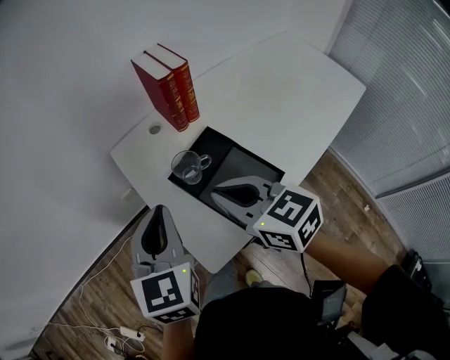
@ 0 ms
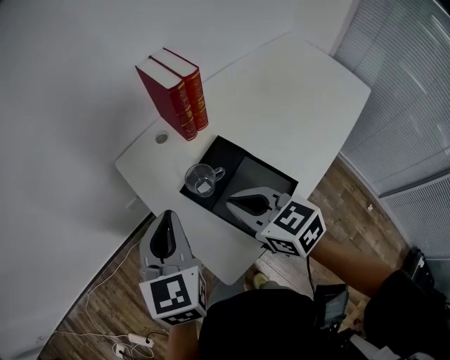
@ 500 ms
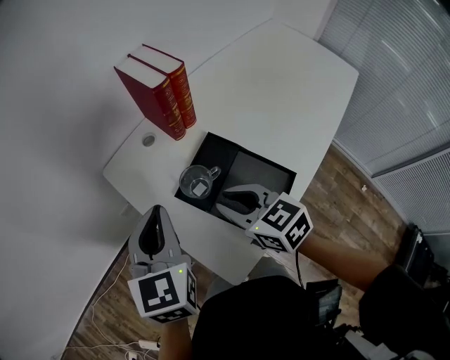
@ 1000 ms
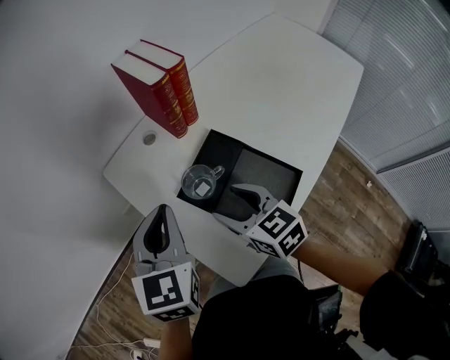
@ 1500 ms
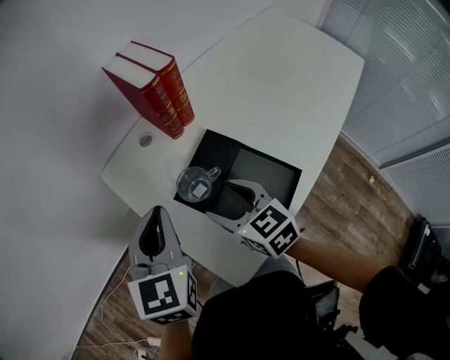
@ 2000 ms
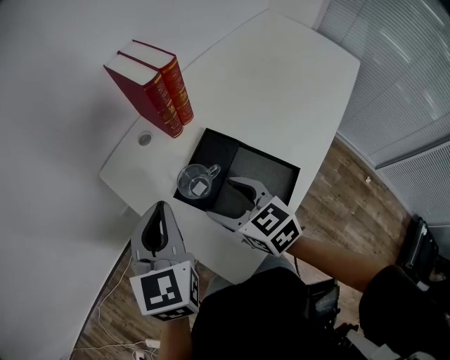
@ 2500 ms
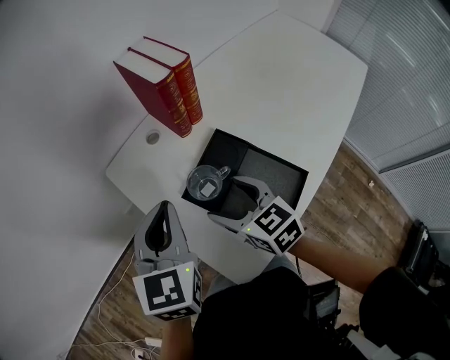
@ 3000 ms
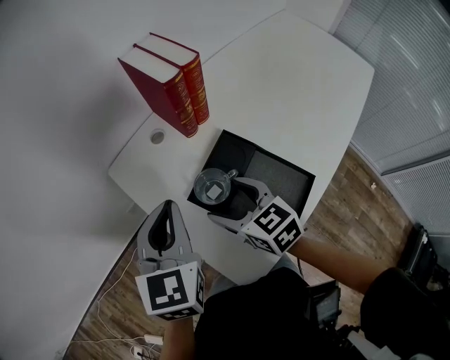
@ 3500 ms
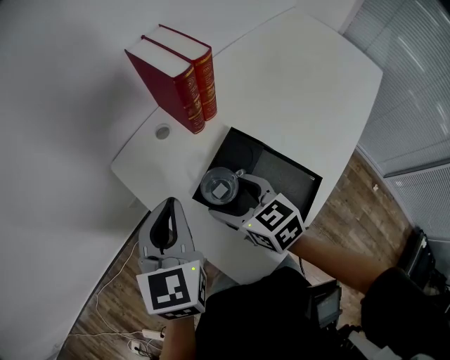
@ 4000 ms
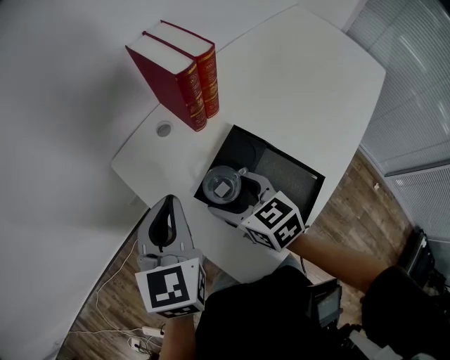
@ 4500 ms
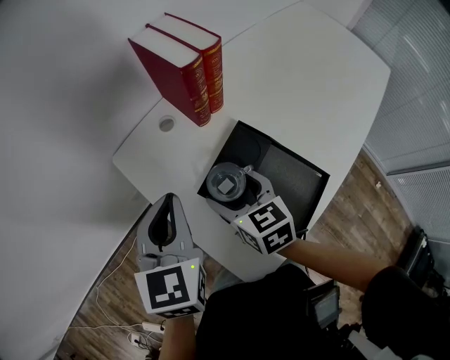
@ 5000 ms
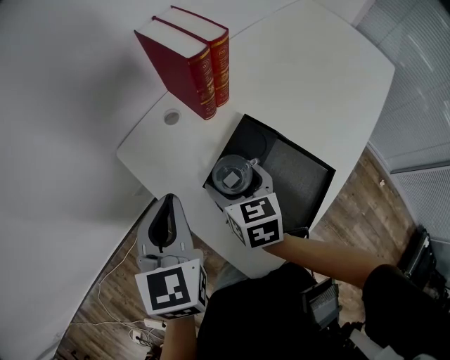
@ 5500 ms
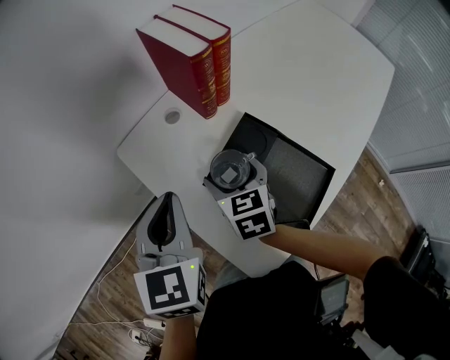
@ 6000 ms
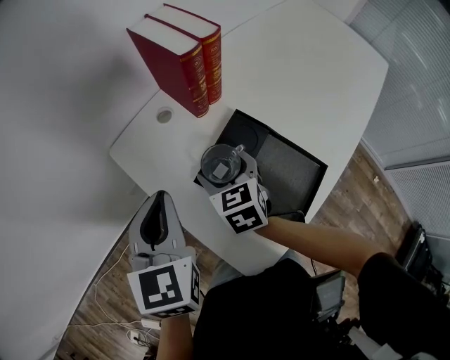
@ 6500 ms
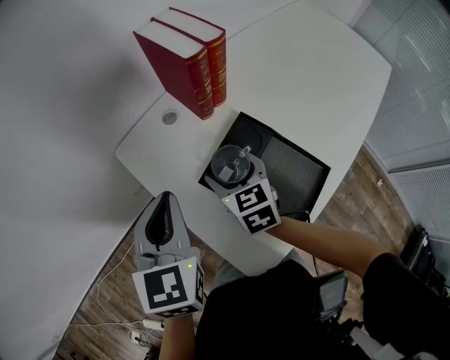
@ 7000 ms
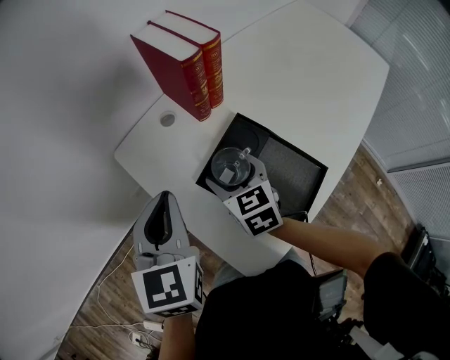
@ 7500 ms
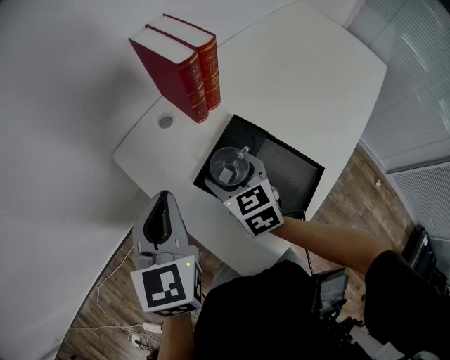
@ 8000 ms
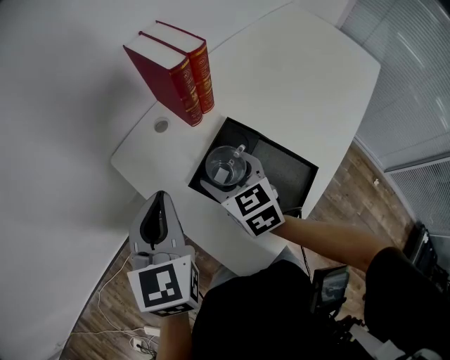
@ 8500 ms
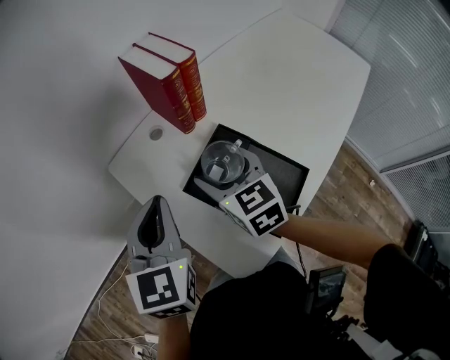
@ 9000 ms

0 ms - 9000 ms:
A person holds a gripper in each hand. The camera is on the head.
0 ms - 2000 ms: The right gripper heads downward and forward, covering some 15 cm, and opens up. Meanwhile the left gripper goes about 10 cm forward.
2000 ms - 4500 ms: The right gripper moves some 5 cm.
4500 ms - 7000 ms: The right gripper moves approximately 5 cm.
7000 ms - 9000 ms: The right gripper shifts roughly 10 cm upward.

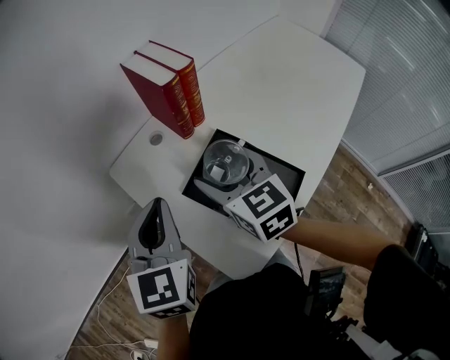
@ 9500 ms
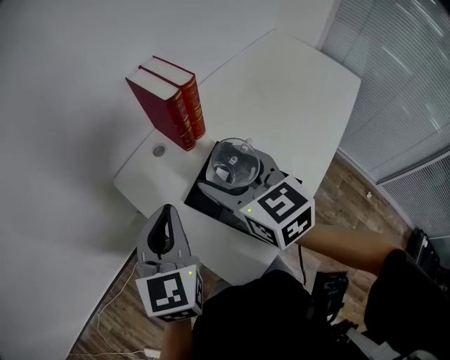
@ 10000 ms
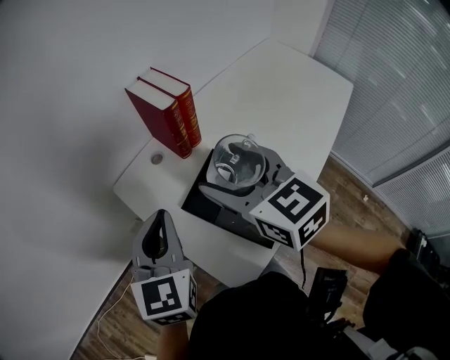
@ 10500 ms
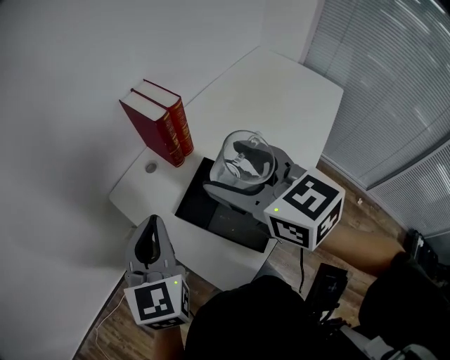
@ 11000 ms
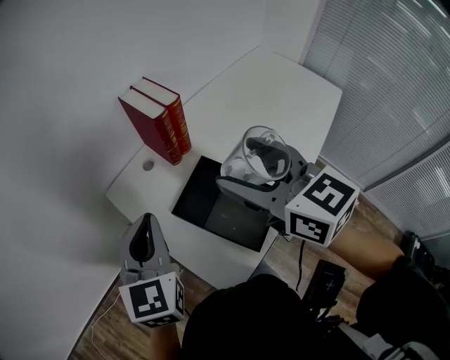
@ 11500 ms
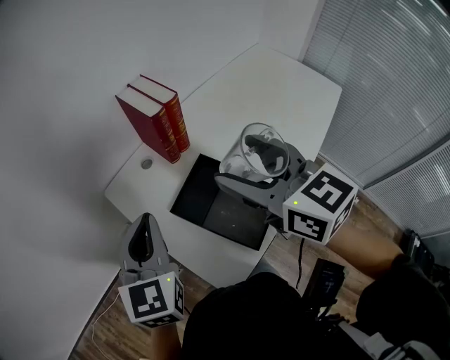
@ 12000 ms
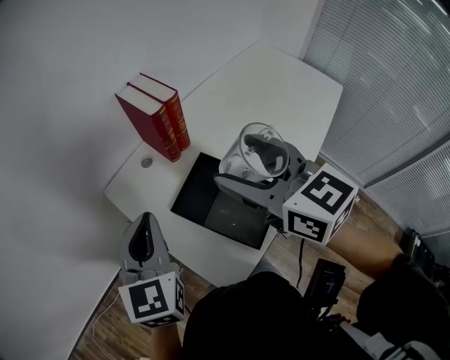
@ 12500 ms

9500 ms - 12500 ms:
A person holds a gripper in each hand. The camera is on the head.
9500 ms - 11000 ms: The right gripper is displaced upward by roughly 15 cm. Meanwhile the left gripper goes about 5 cm upward.
11000 ms - 12500 ms: The grippers make only small movements.

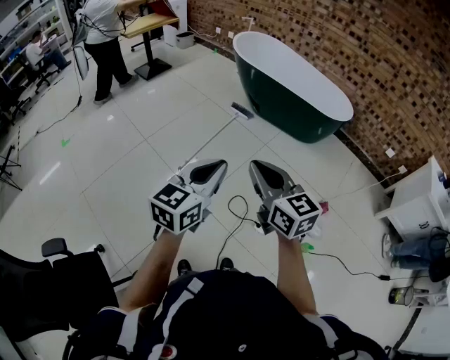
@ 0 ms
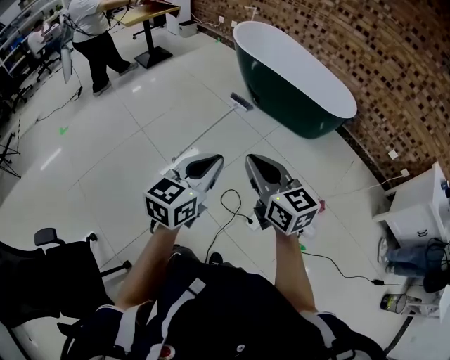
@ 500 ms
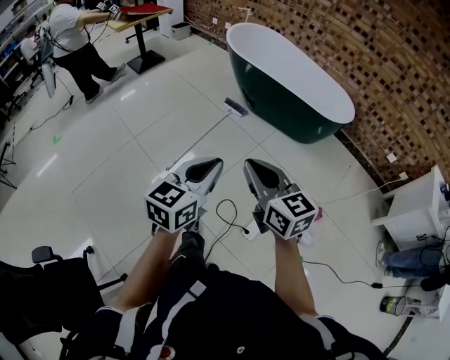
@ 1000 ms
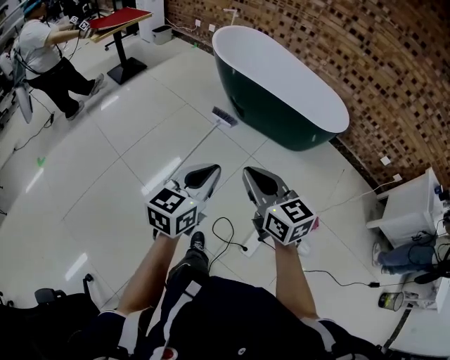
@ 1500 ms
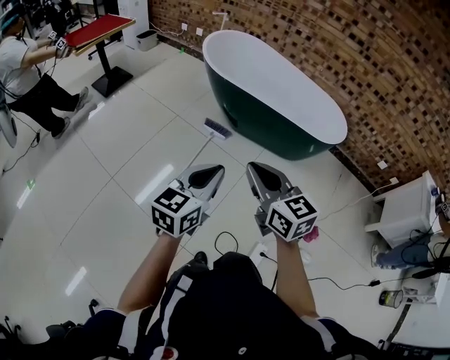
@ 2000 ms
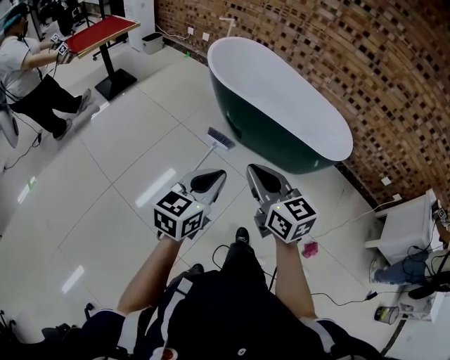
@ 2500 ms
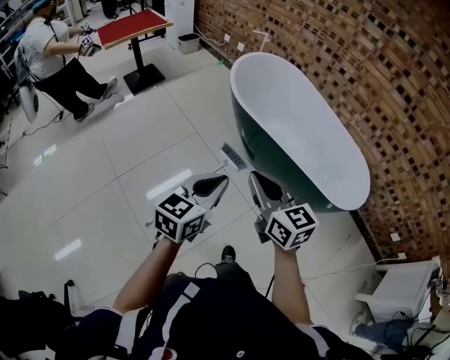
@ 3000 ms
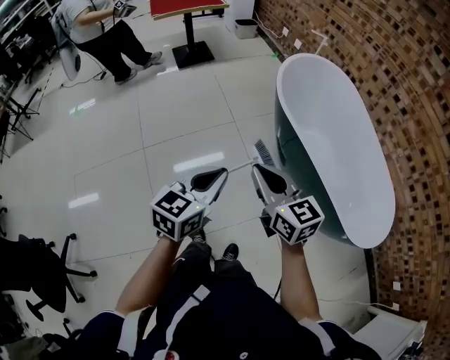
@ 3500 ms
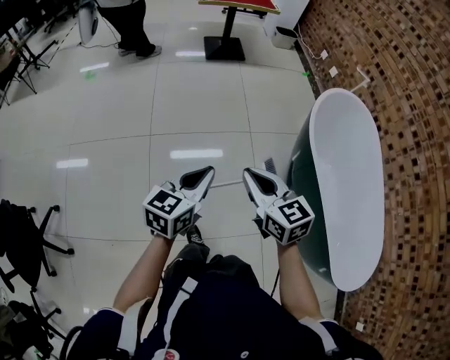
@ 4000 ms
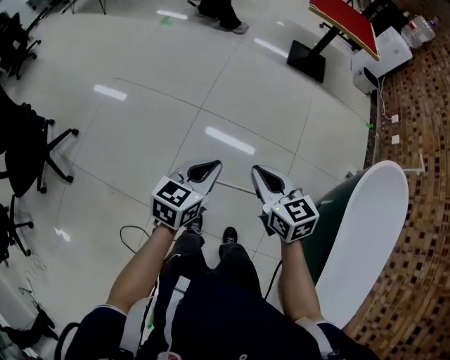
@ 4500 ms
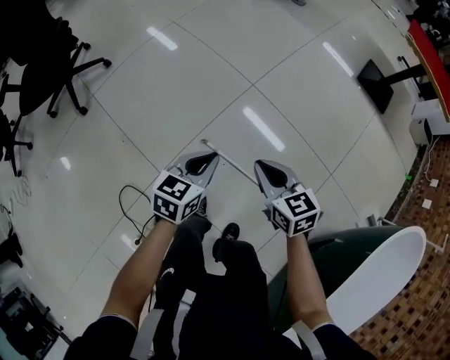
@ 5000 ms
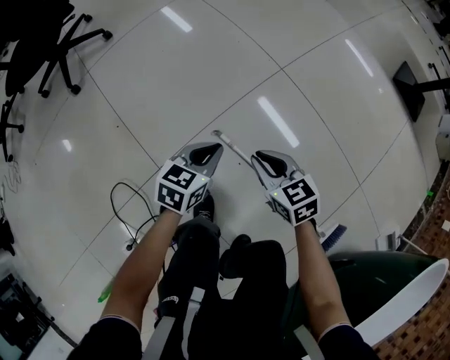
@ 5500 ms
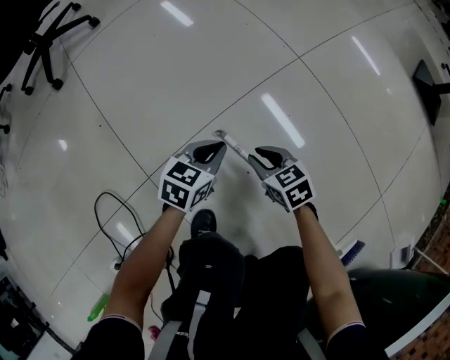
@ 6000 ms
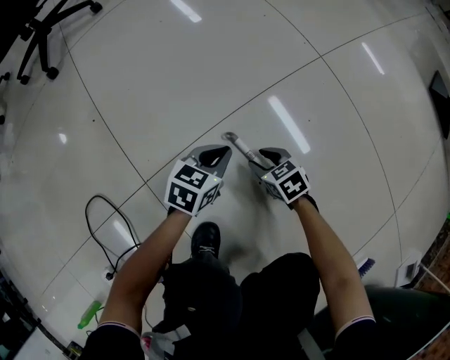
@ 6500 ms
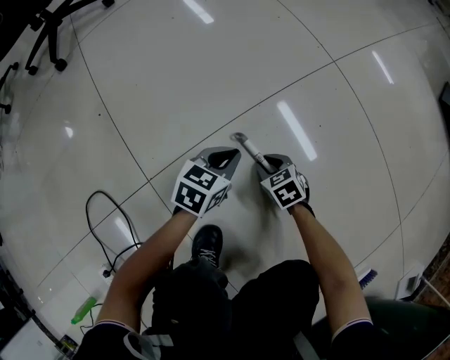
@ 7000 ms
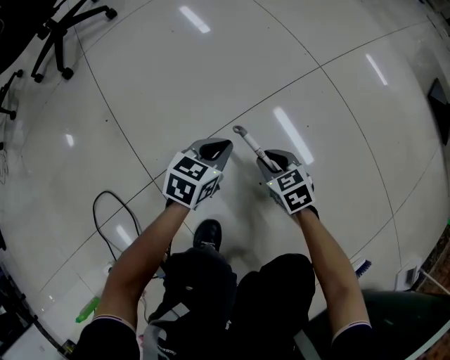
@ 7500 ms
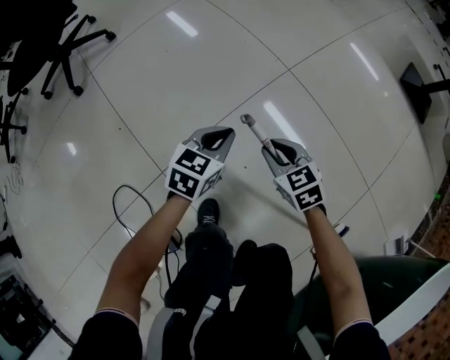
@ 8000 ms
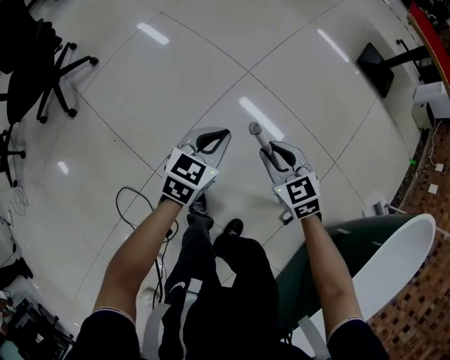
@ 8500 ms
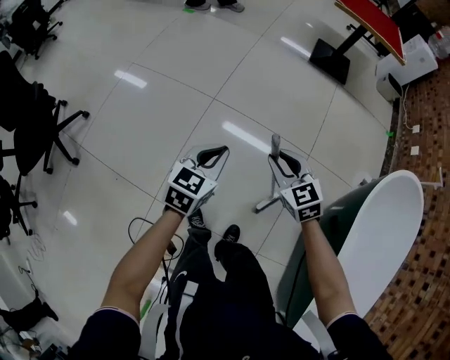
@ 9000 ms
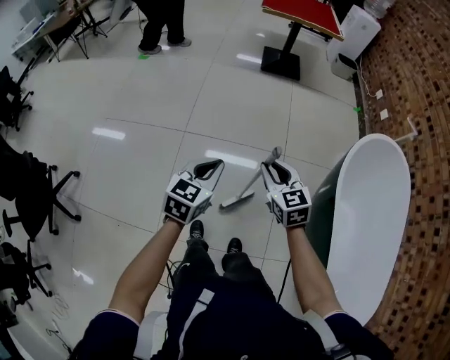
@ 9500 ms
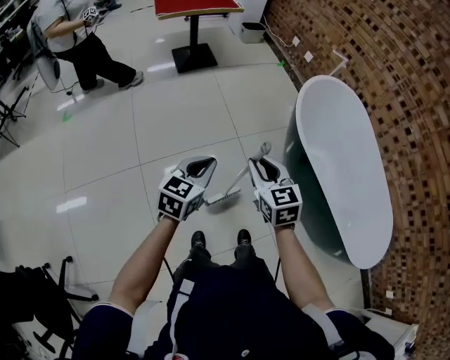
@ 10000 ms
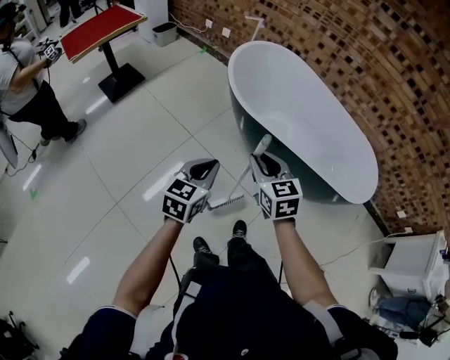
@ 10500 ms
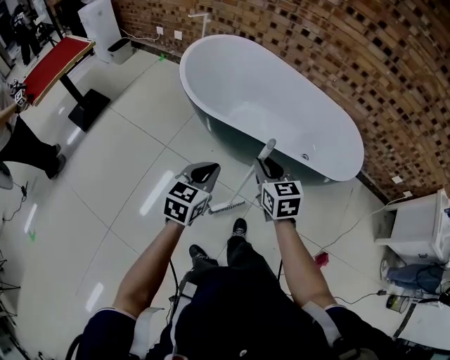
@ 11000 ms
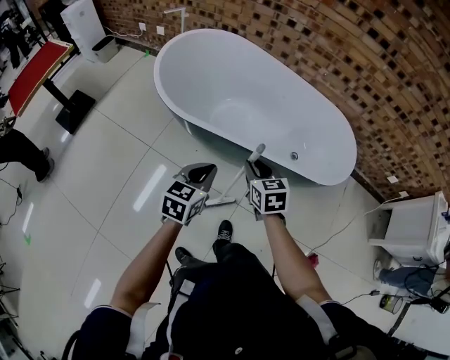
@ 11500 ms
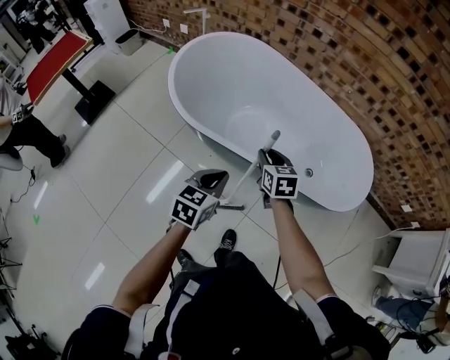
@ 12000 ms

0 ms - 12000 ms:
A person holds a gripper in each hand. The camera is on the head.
0 ms - 2000 ms: Both grippers move forward, roughly 40 cm.
2000 ms - 4000 ms: The right gripper ends up some 35 cm from where it was, and swivels approximately 50 degrees. Meanwhile the left gripper changes place by approximately 30 cm, and swivels some 50 degrees.
4000 ms - 6000 ms: Both grippers travel together downward, about 70 cm. The left gripper rotates about 50 degrees. Meanwhile the right gripper turns by some 70 degrees, and opens up.
6000 ms - 8000 ms: The two grippers go roughly 15 cm upward.
8000 ms - 10000 ms: Both grippers move upward, some 50 cm. The right gripper turns by approximately 90 degrees; the left gripper turns by about 70 degrees.
10000 ms - 12000 ms: The two grippers travel together, approximately 50 cm. The right gripper rotates some 50 degrees; the left gripper changes its angle by roughly 40 degrees.

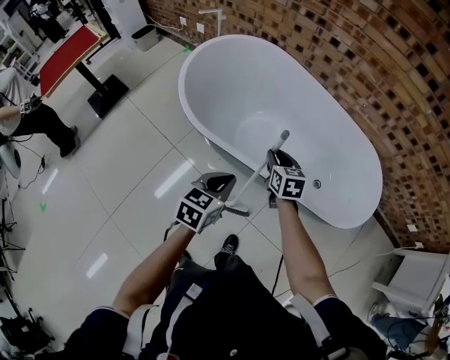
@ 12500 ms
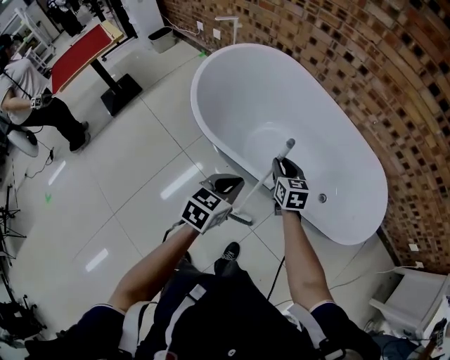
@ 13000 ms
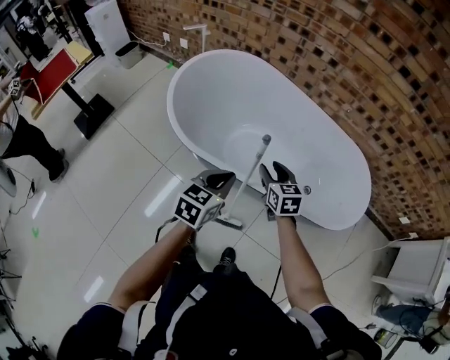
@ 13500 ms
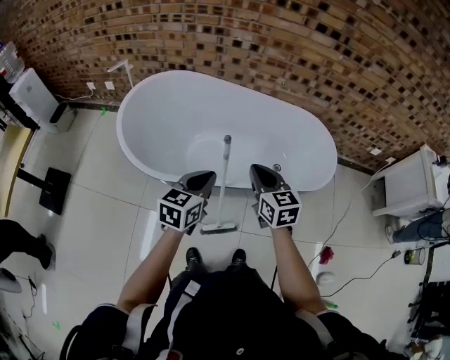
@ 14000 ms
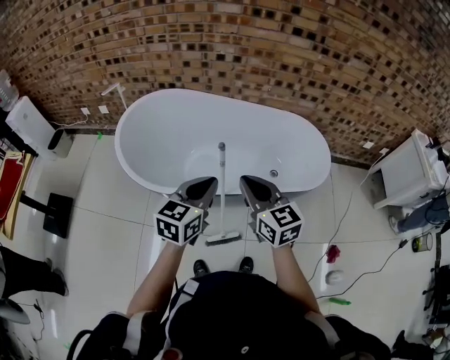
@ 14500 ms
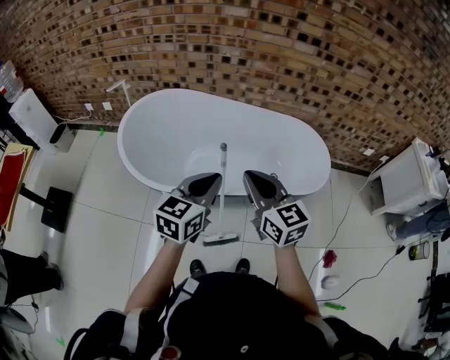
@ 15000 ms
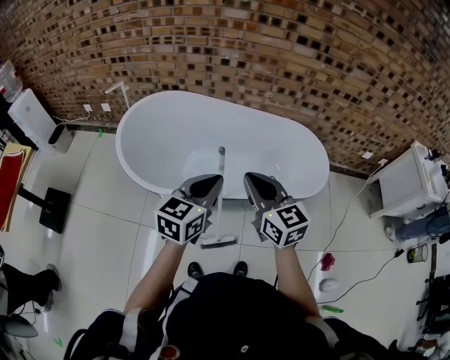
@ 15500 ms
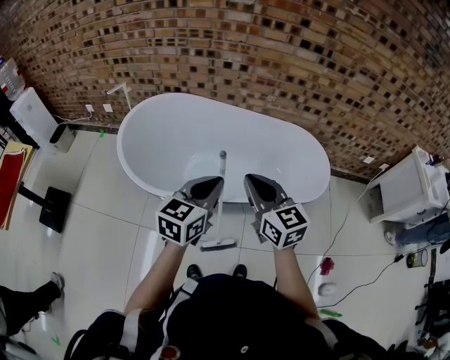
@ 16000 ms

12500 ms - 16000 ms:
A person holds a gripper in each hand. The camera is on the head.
12500 ms - 14500 ms: The right gripper is displaced upward and backward by roughly 25 cm, changes its angle by some 30 degrees, and closes. Meanwhile the left gripper goes about 15 cm upward, and turns by about 30 degrees.
14500 ms - 16000 ms: The grippers move only a little.
